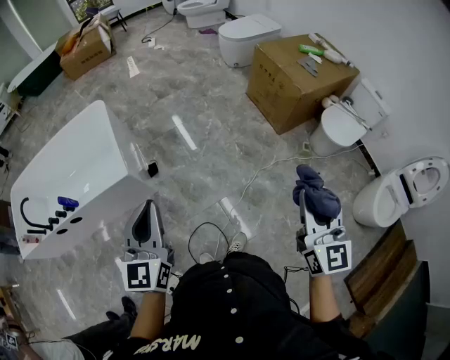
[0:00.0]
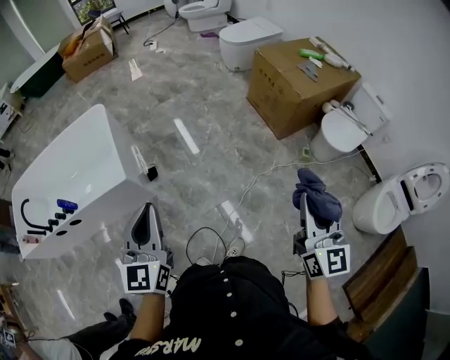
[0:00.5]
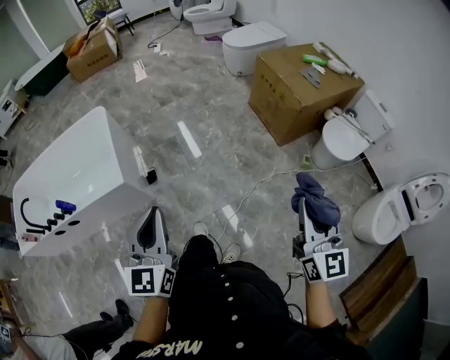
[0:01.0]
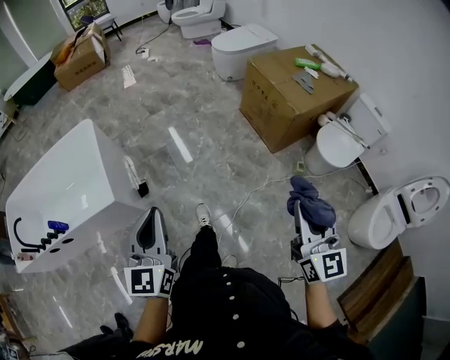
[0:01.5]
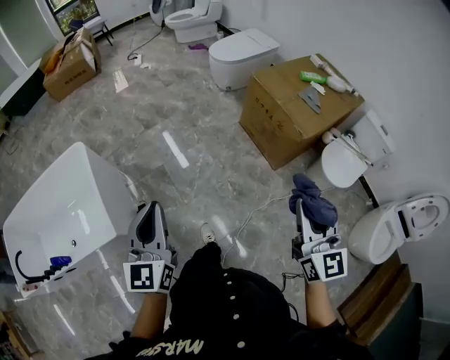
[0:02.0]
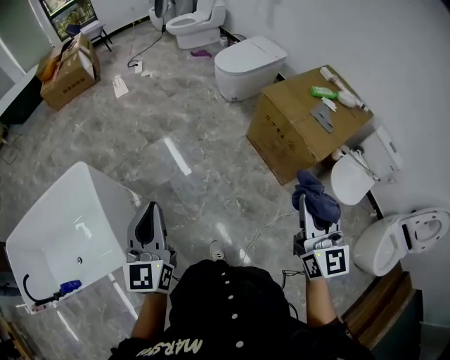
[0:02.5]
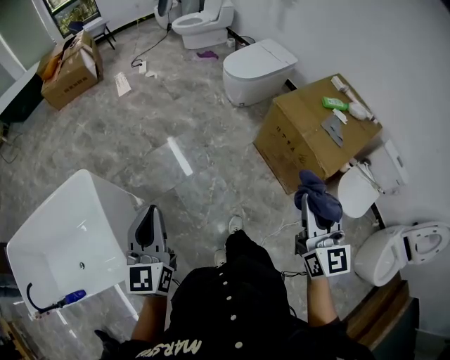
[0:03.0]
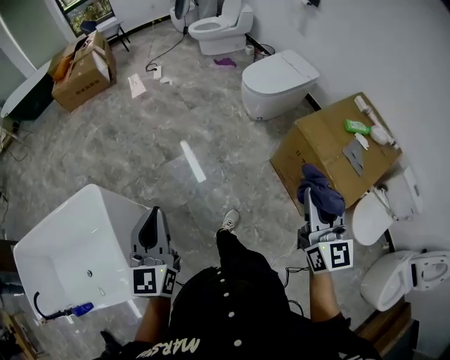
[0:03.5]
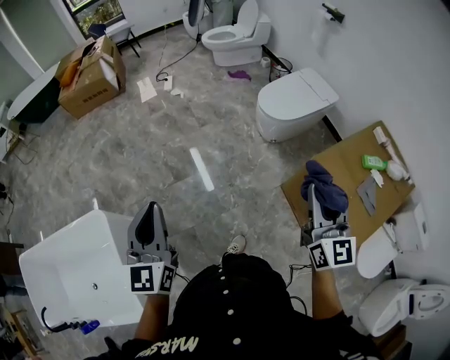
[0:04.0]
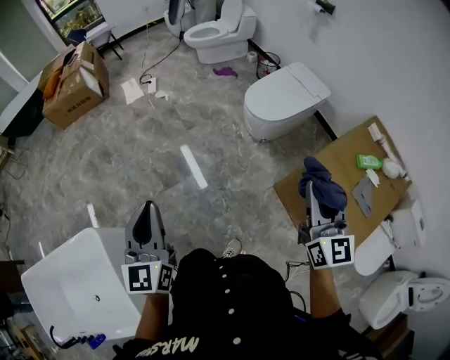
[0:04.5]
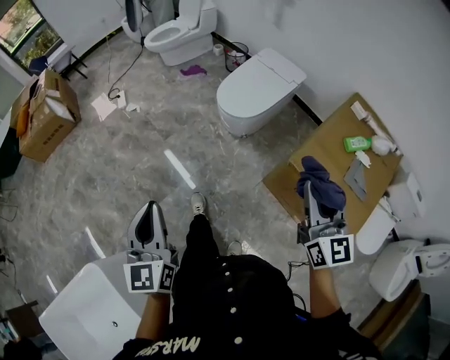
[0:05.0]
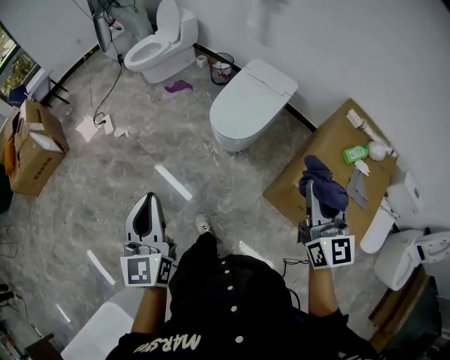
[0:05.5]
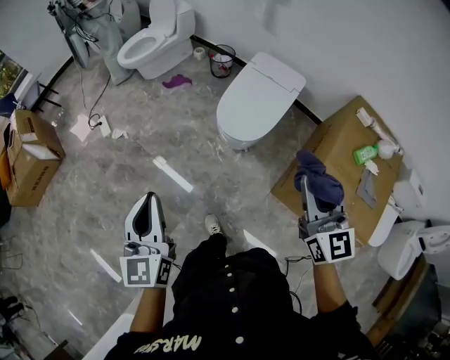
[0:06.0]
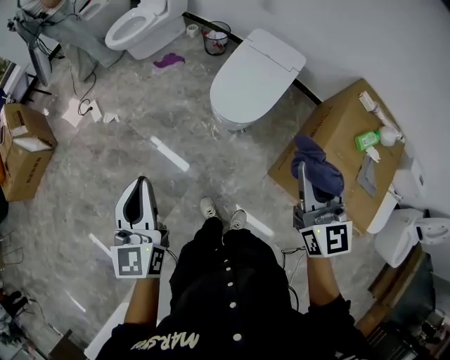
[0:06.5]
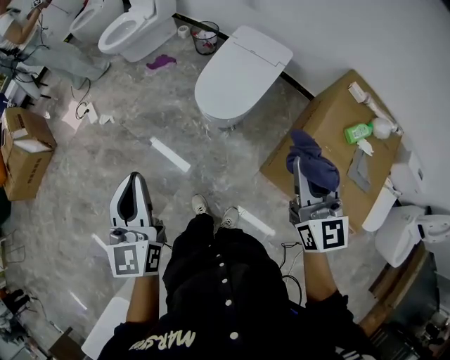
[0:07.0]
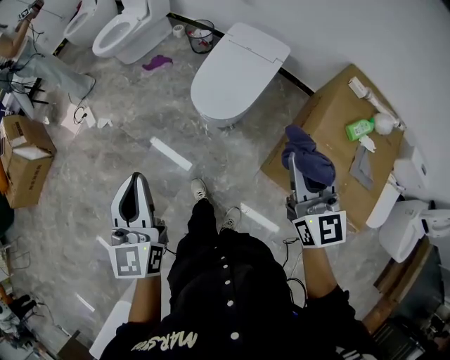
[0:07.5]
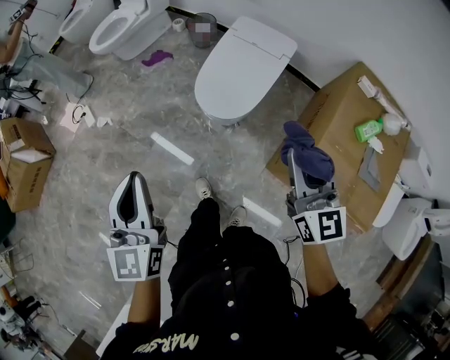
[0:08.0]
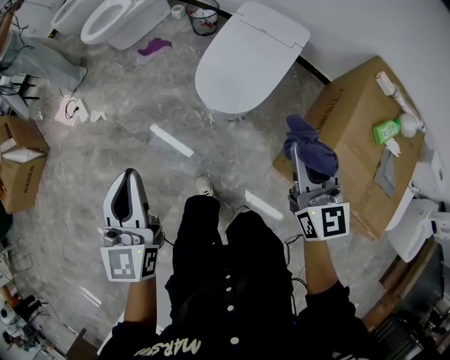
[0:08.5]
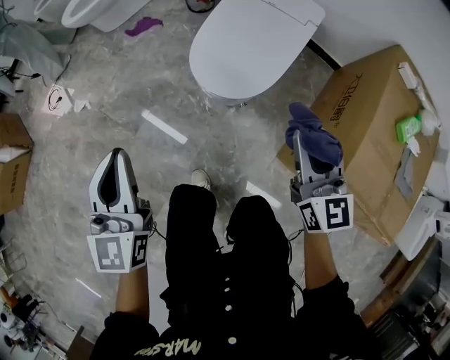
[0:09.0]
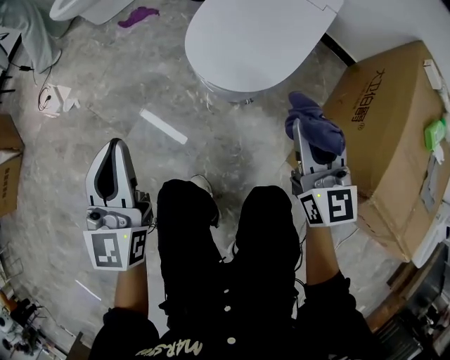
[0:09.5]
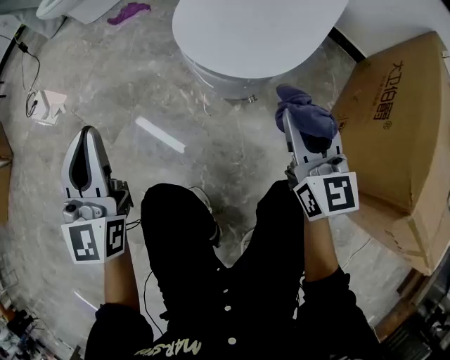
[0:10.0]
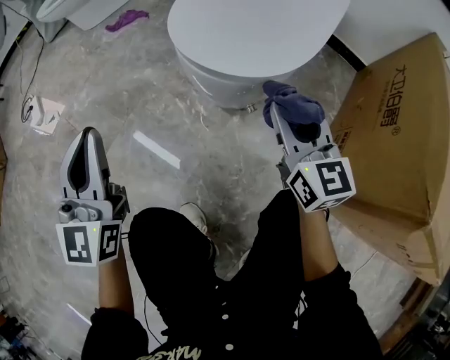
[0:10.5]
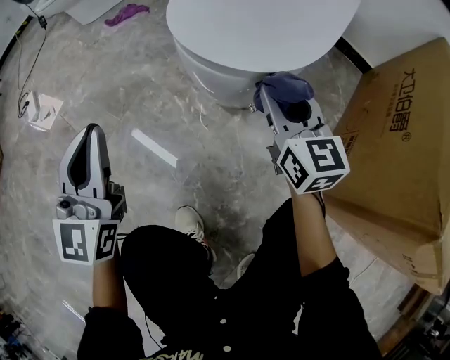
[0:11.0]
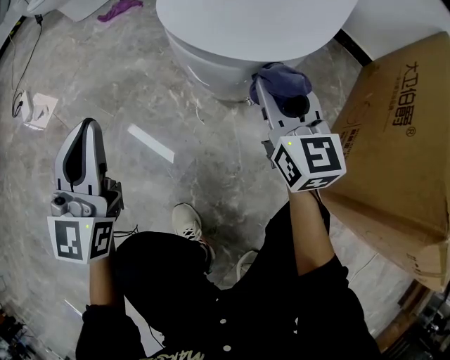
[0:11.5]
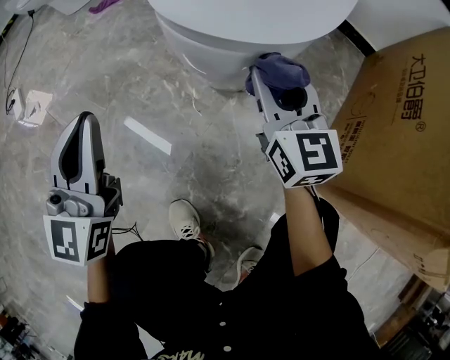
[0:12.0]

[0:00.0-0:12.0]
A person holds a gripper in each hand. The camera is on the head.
0:00.0 to 0:02.0: Both grippers travel together forward, roughly 30 cm.
0:02.0 to 0:04.0: Both grippers are carried forward, approximately 60 cm.
0:04.0 to 0:06.0: The grippers both shift forward by roughly 40 cm. The right gripper rotates some 20 degrees. The left gripper changes its angle by some 30 degrees.
0:06.0 to 0:08.0: The left gripper goes some 15 cm to the right and forward, while the right gripper is displaced downward, to the right and forward by approximately 15 cm.
0:08.0 to 0:10.0: Both grippers travel together downward, some 50 cm.
0:10.0 to 0:12.0: The right gripper goes roughly 15 cm downward and forward. The left gripper travels downward by about 15 cm.

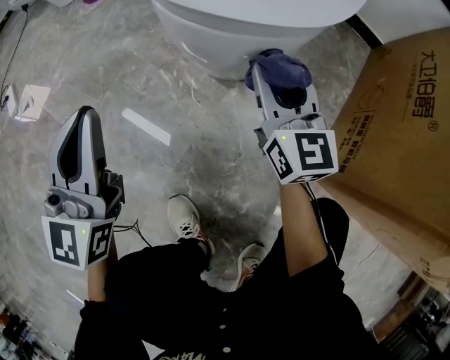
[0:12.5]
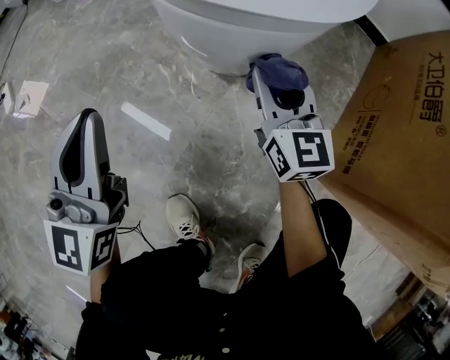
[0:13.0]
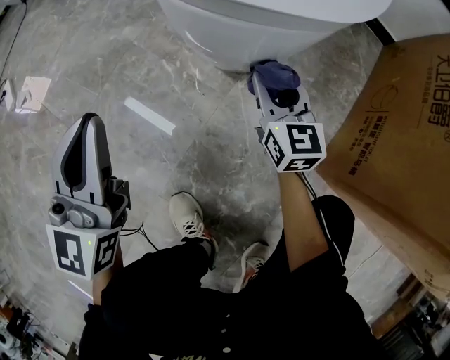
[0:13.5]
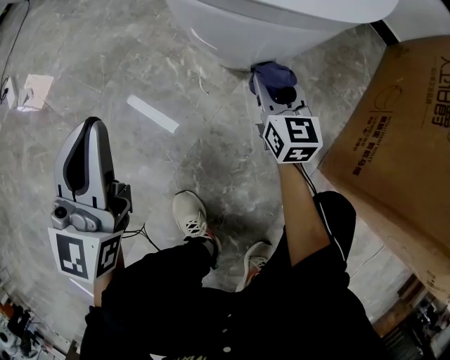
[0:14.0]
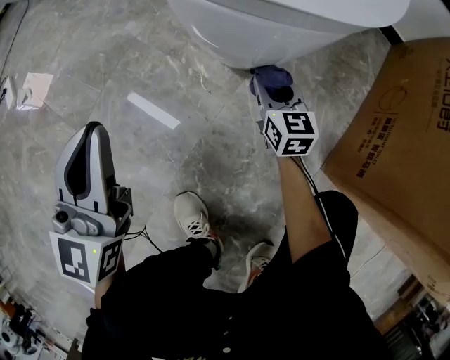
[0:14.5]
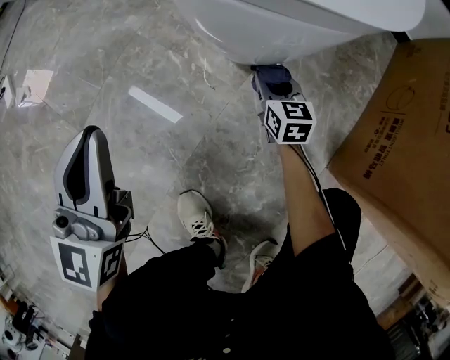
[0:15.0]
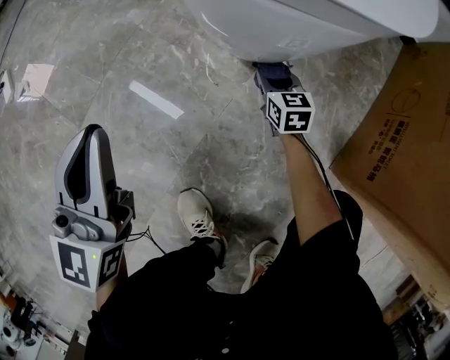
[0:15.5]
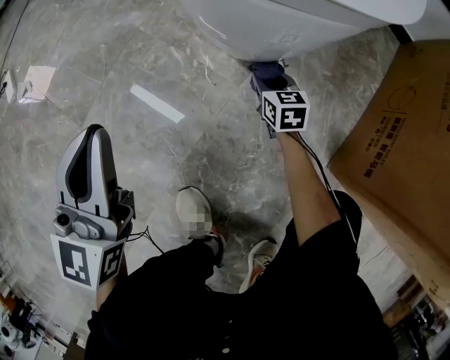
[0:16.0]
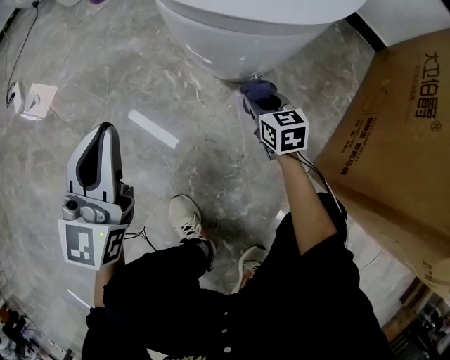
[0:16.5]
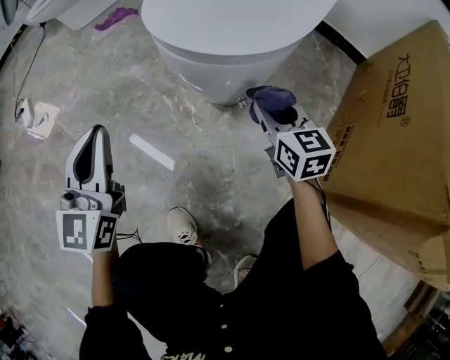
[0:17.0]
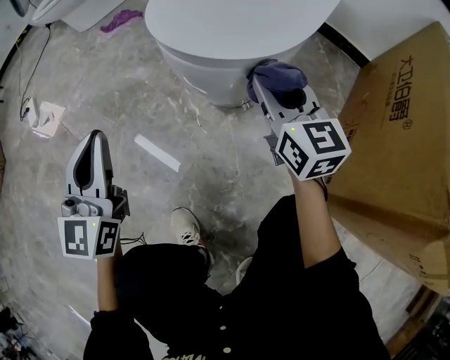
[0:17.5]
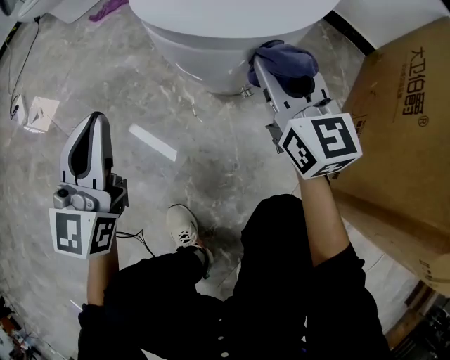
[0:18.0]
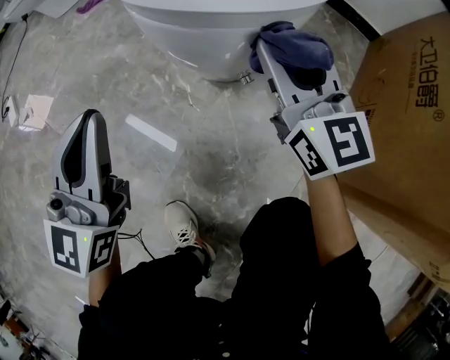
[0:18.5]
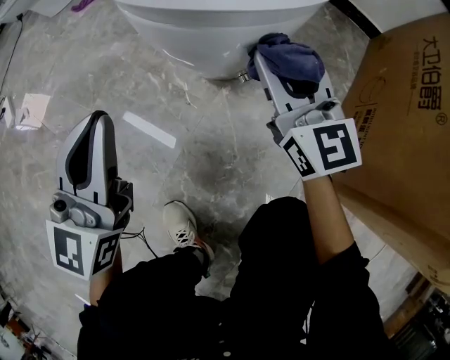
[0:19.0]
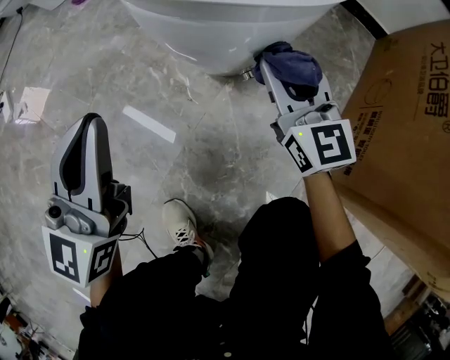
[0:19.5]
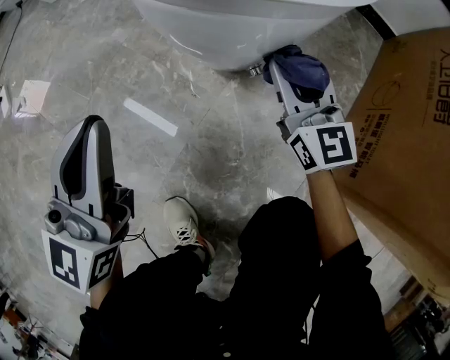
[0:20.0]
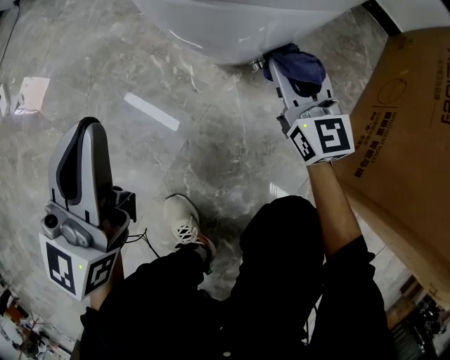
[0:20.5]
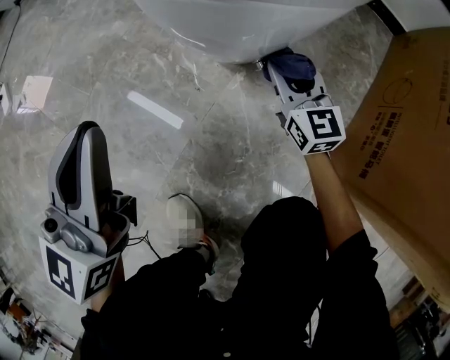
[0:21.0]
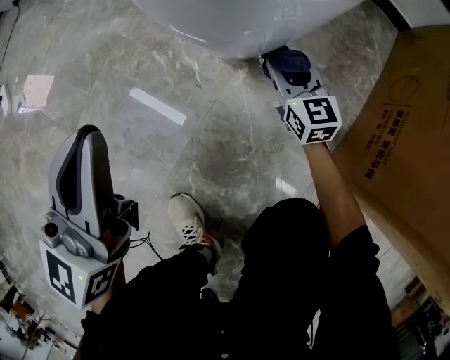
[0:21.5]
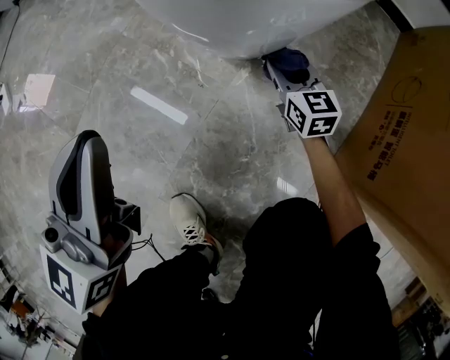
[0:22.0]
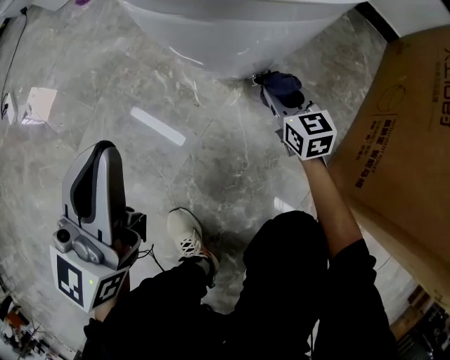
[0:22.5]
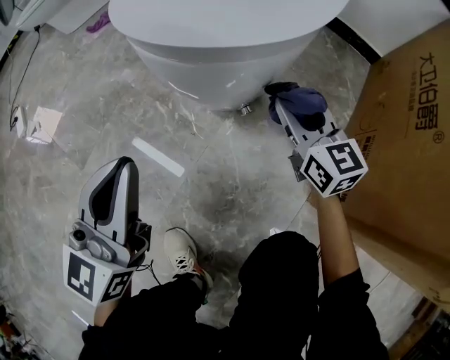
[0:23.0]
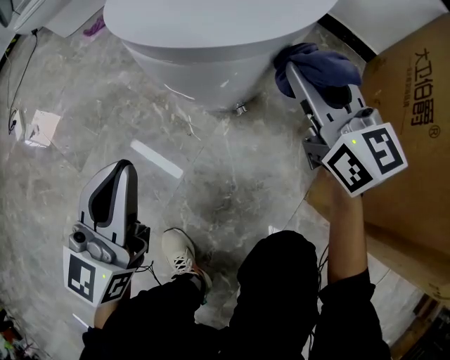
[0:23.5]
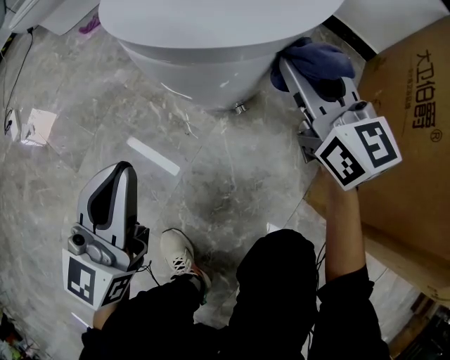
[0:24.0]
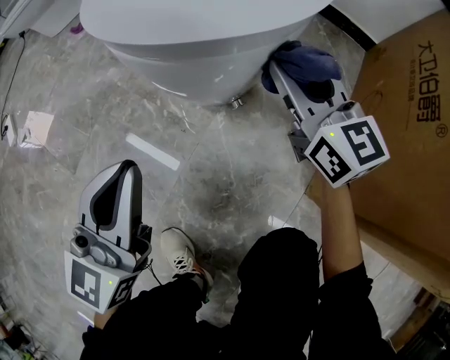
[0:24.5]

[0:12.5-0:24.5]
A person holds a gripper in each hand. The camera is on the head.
0:12.5 to 0:14.5: The right gripper shifts roughly 20 cm downward.
0:14.5 to 0:16.5: The right gripper moves approximately 10 cm downward and comes back.
0:16.5 to 0:18.5: The right gripper heads upward, covering roughly 25 cm, and angles its fingers upward, by about 40 degrees. The left gripper moves some 5 cm.
0:18.5 to 0:20.5: The right gripper travels downward by approximately 15 cm.
0:20.5 to 0:22.5: The right gripper heads downward, covering roughly 15 cm, and swivels some 20 degrees.
0:22.5 to 0:24.5: The right gripper goes roughly 25 cm upward, and turns by about 20 degrees.

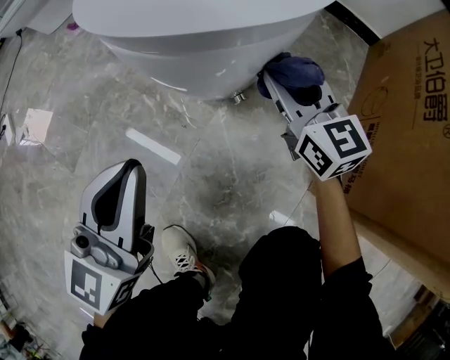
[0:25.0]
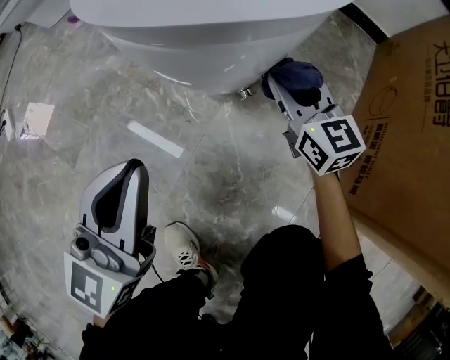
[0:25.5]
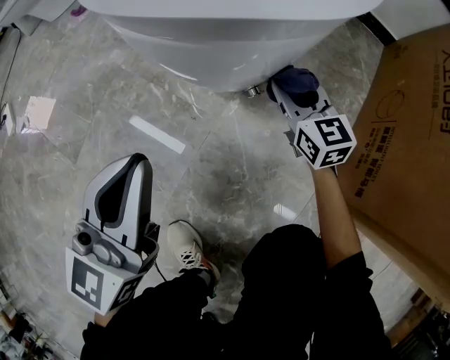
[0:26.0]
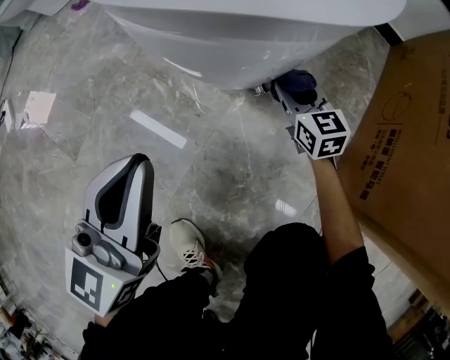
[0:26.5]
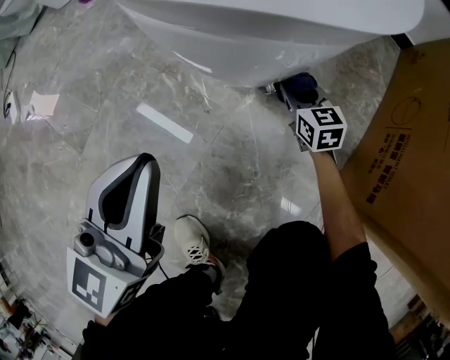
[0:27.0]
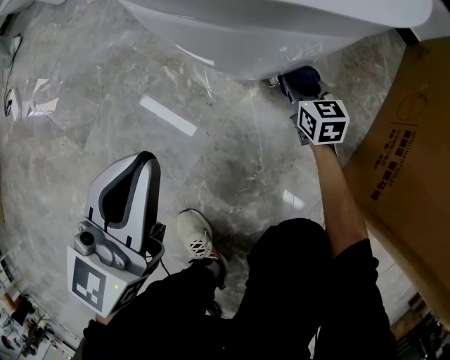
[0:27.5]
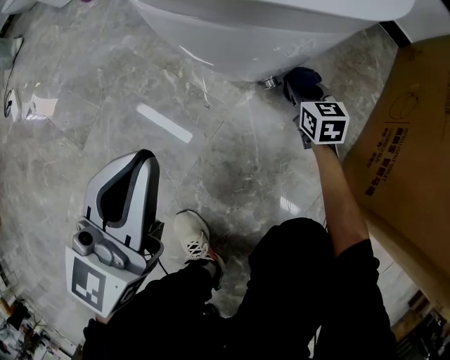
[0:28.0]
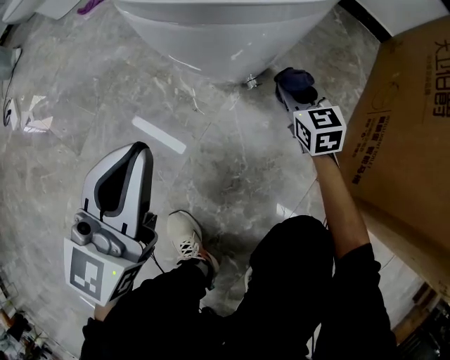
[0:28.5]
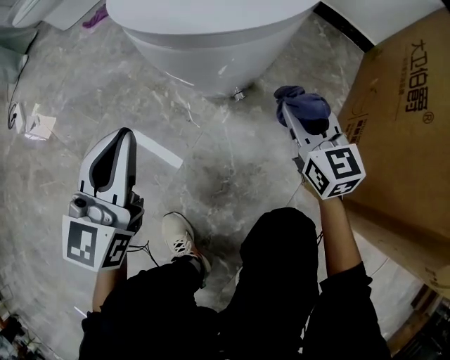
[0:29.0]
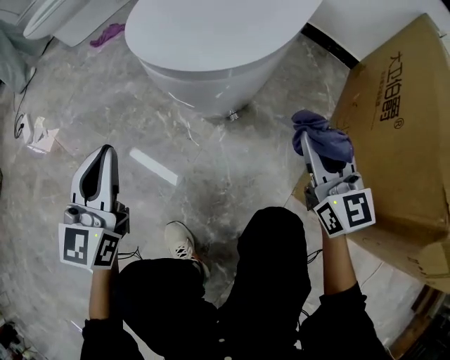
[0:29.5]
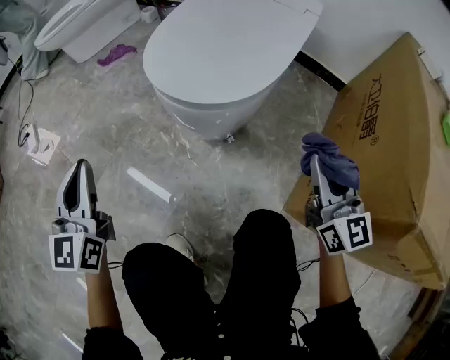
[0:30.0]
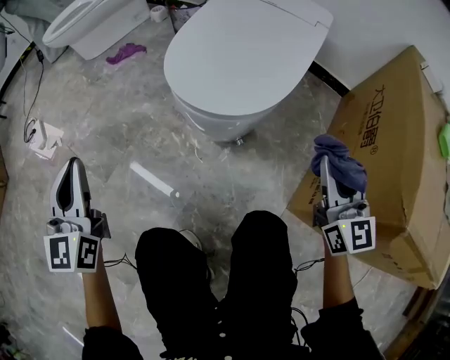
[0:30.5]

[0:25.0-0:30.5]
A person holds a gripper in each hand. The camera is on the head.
0:25.0 to 0:27.0: The right gripper goes roughly 20 cm downward, and rotates approximately 20 degrees.
0:27.0 to 0:28.5: The right gripper is displaced upward by some 5 cm.
0:28.5 to 0:30.5: The left gripper heads to the left and upward, covering about 25 cm, and swivels approximately 30 degrees; the right gripper heads upward, covering roughly 40 cm, and swivels approximately 30 degrees.
